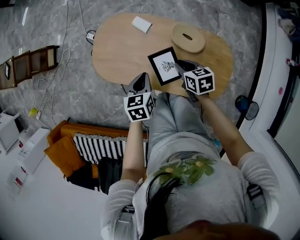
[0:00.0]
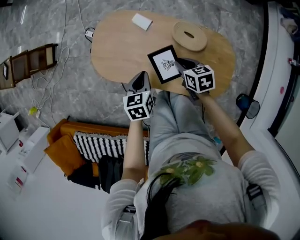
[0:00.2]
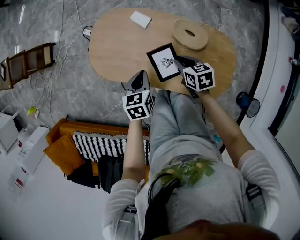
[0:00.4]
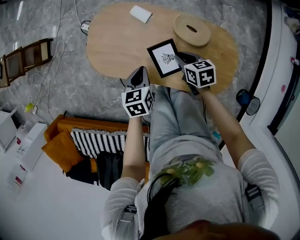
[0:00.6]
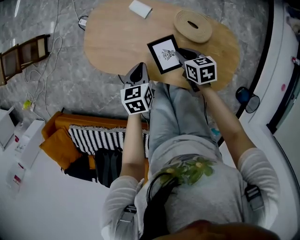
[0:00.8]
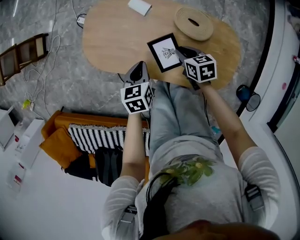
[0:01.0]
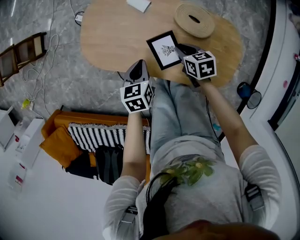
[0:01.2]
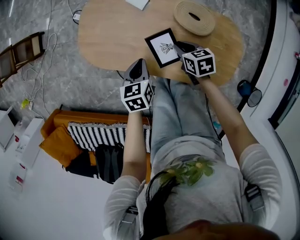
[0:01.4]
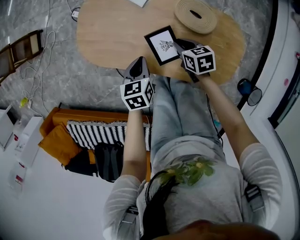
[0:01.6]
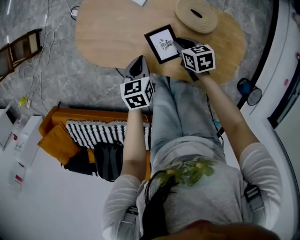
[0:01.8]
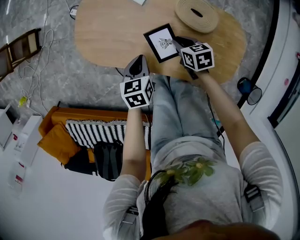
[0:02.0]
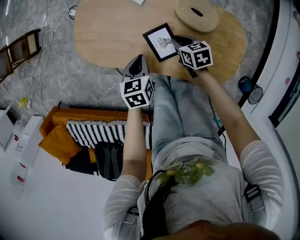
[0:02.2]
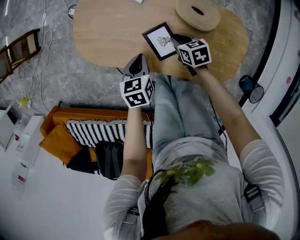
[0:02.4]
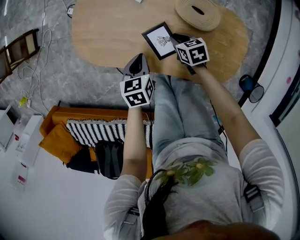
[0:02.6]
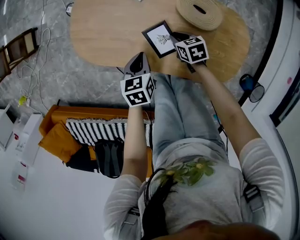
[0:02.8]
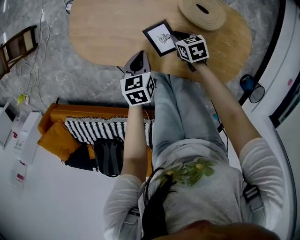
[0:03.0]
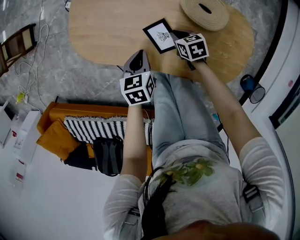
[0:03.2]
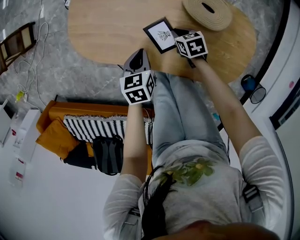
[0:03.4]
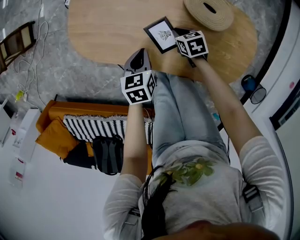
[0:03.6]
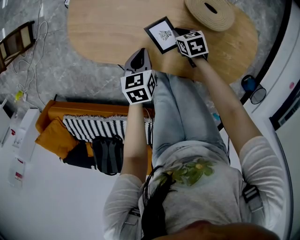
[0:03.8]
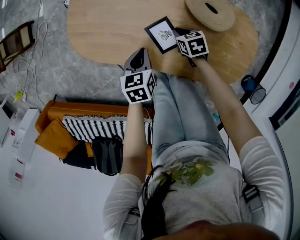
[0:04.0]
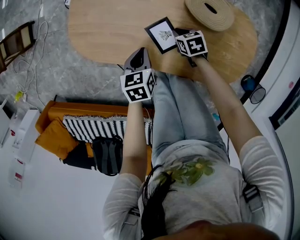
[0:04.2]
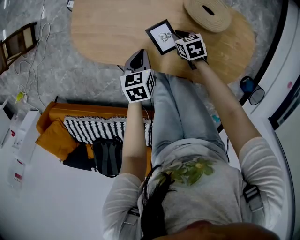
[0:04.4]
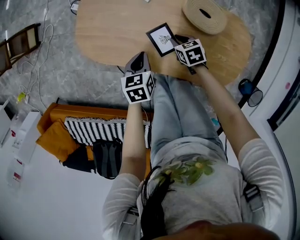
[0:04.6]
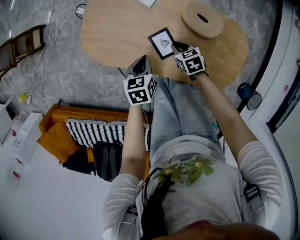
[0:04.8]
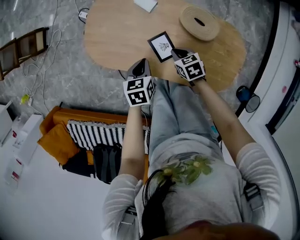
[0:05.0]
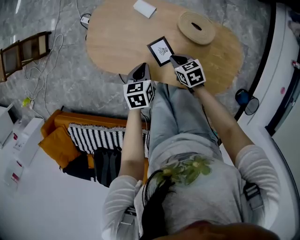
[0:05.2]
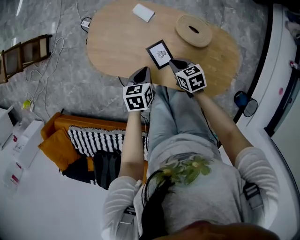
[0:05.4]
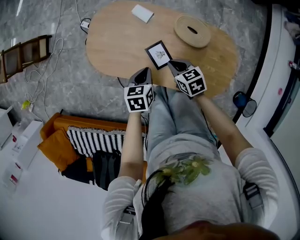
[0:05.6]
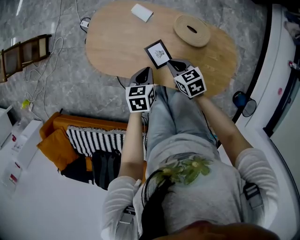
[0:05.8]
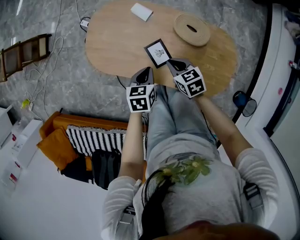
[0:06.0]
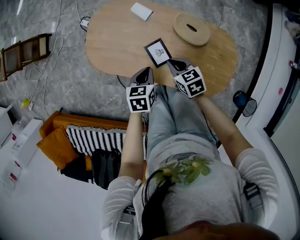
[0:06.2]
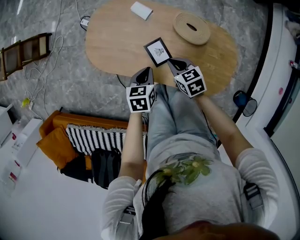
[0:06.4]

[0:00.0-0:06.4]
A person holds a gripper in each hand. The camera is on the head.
0:00.0 to 0:01.6: Both grippers move downward, some 10 cm.
0:01.6 to 0:03.2: The right gripper heads downward, covering roughly 10 cm; the left gripper travels downward by about 5 cm.
0:03.2 to 0:04.8: The right gripper is displaced upward by roughly 5 cm.
0:04.8 to 0:06.4: The right gripper shifts about 10 cm upward, while the left gripper moves about 5 cm.

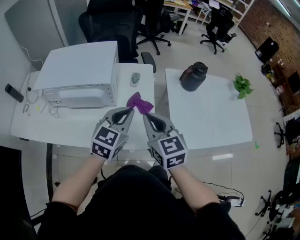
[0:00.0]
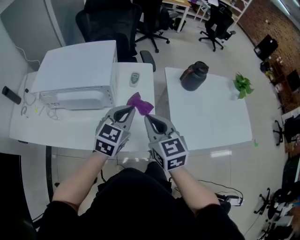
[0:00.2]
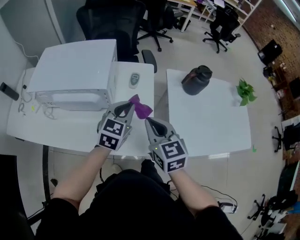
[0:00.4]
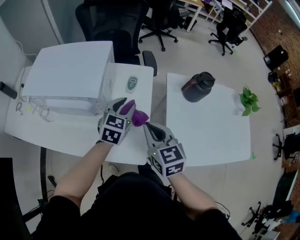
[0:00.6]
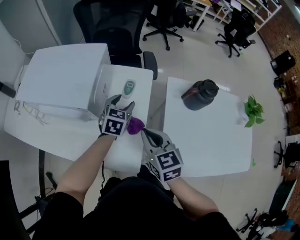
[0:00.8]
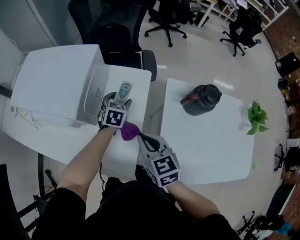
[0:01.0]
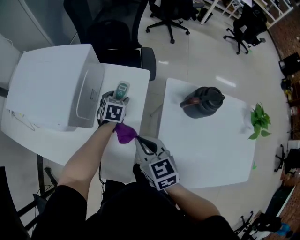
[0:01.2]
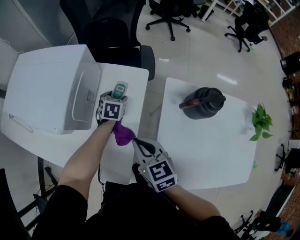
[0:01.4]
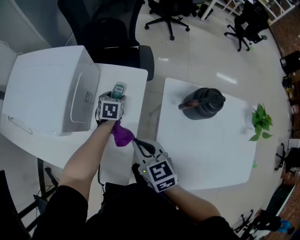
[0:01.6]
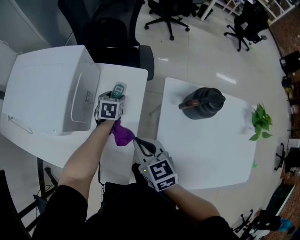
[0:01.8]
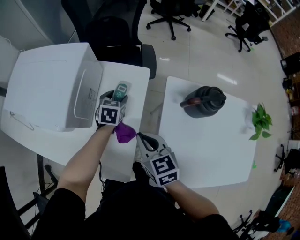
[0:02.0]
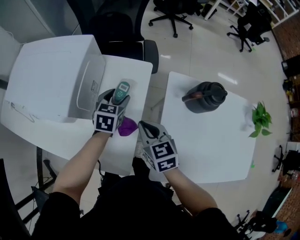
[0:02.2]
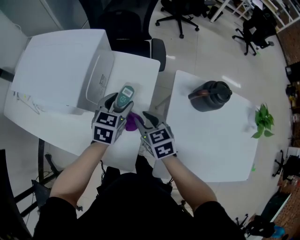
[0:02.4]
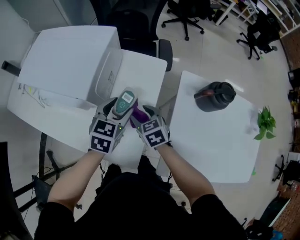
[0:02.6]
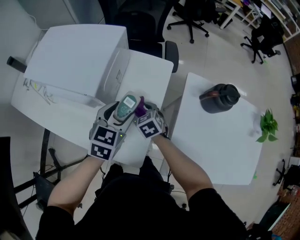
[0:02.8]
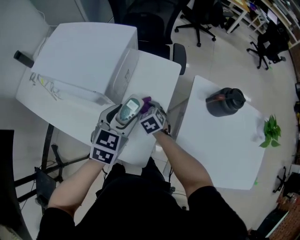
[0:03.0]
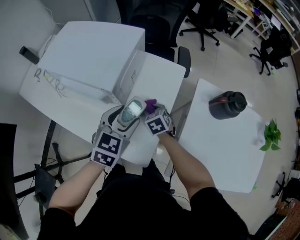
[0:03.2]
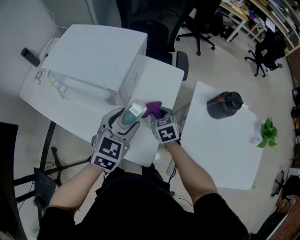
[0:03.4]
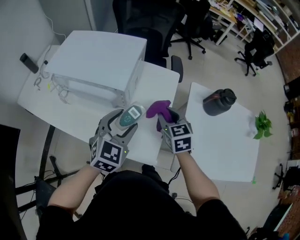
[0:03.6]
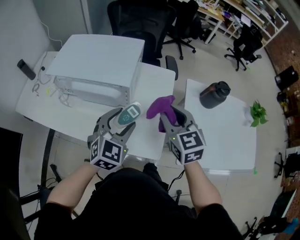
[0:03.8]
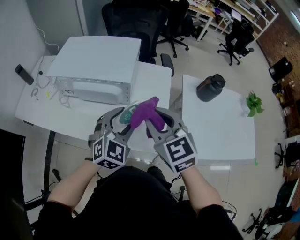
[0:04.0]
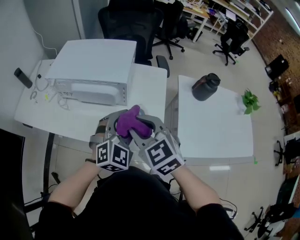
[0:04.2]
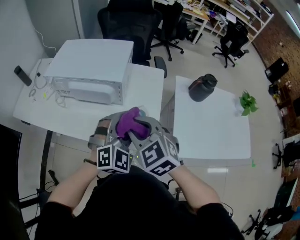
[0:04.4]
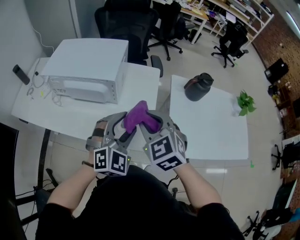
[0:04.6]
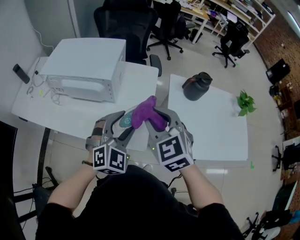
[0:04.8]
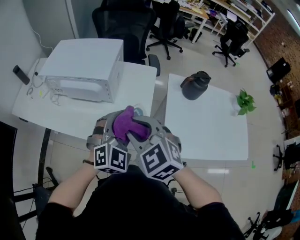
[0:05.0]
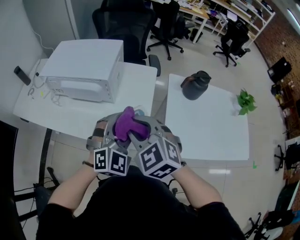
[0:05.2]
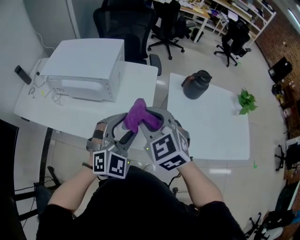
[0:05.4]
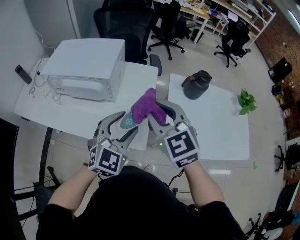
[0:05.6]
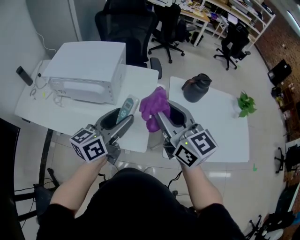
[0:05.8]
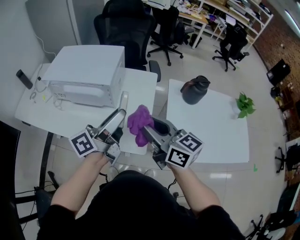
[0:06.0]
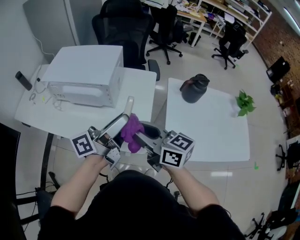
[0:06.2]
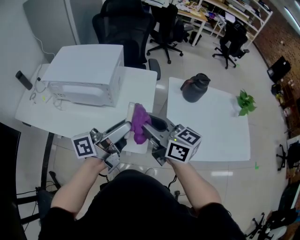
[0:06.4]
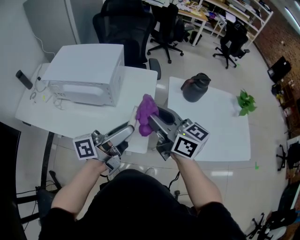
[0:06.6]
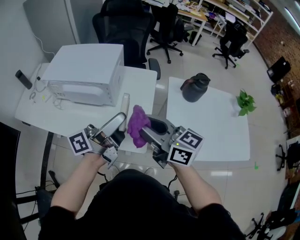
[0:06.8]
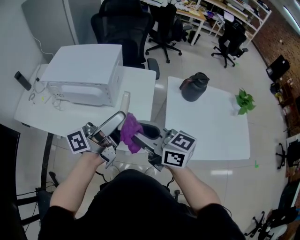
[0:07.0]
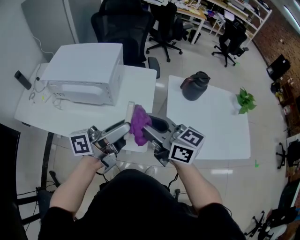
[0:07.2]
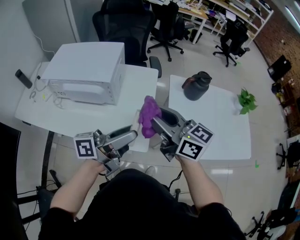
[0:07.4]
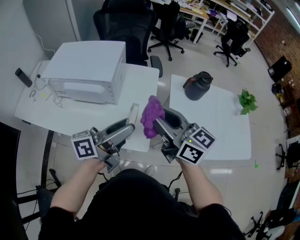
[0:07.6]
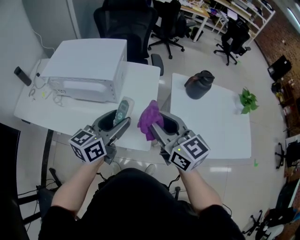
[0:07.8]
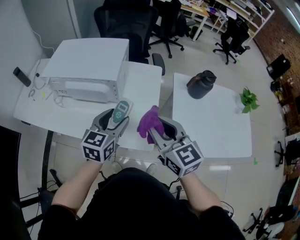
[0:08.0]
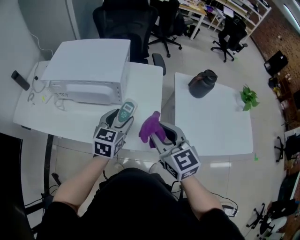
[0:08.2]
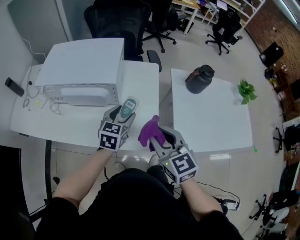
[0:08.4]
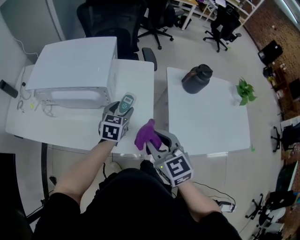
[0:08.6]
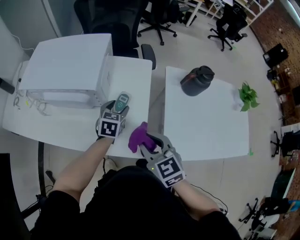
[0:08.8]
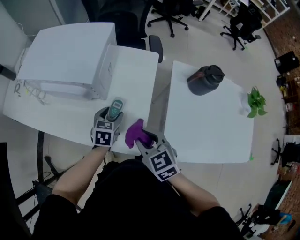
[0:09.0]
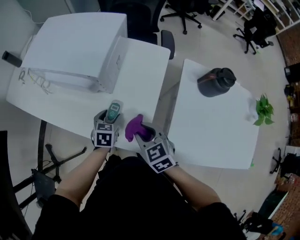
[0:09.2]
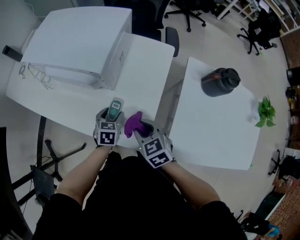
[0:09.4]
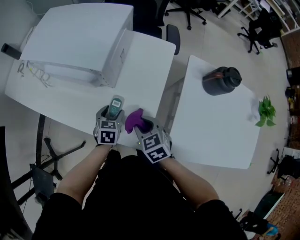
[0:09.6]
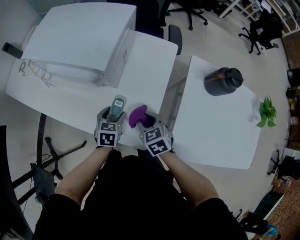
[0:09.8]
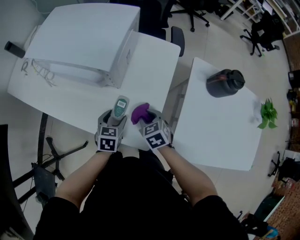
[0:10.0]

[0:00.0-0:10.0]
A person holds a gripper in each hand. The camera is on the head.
0:00.0 to 0:01.4: The right gripper ends up roughly 20 cm from where it was, and turns by some 30 degrees, while the left gripper ends up about 40 cm from where it was, tilts its fingers some 30 degrees downward, and opens up.
0:01.4 to 0:02.8: The right gripper goes some 15 cm downward, to the left and forward, swivels some 20 degrees, and opens up. Meanwhile the left gripper heads backward, upward and to the left, covering roughly 25 cm.
0:02.8 to 0:04.2: The right gripper travels upward, backward and to the left by approximately 40 cm, changes its angle by about 30 degrees, and closes, while the left gripper heads backward, upward and to the left, covering roughly 20 cm, and rotates some 40 degrees.
0:04.2 to 0:05.8: The right gripper goes left and right, roughly 20 cm each way, reversing 2 times, and changes its angle by approximately 40 degrees, while the left gripper travels upward by some 5 cm, and twists some 70 degrees counterclockwise, seen from behind.
0:05.8 to 0:07.2: The left gripper swivels some 40 degrees. The right gripper swivels about 20 degrees.
0:07.2 to 0:08.6: The left gripper goes roughly 25 cm downward and forward, and angles its fingers downward, by some 50 degrees; the right gripper is displaced downward by roughly 10 cm, and turns by roughly 40 degrees.
0:08.6 to 0:10.0: The right gripper shifts approximately 25 cm downward, and turns by some 30 degrees, while the left gripper travels downward, backward and to the left by some 15 cm, and changes its angle by about 20 degrees.

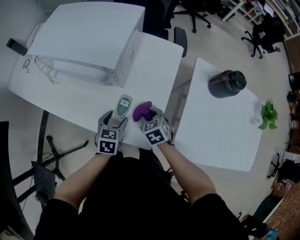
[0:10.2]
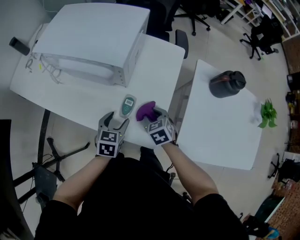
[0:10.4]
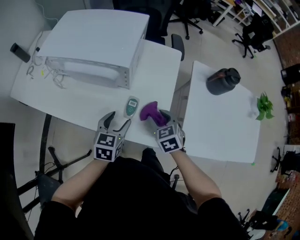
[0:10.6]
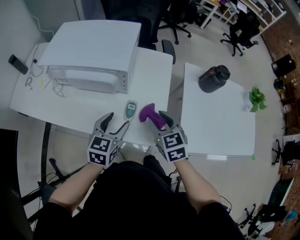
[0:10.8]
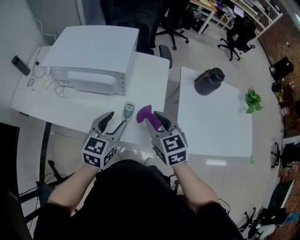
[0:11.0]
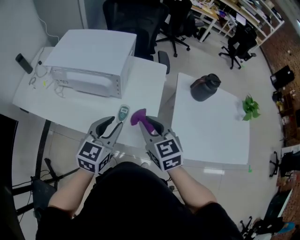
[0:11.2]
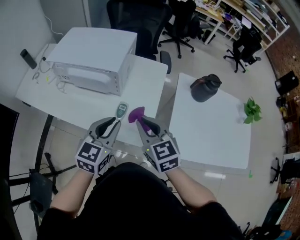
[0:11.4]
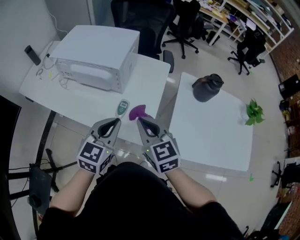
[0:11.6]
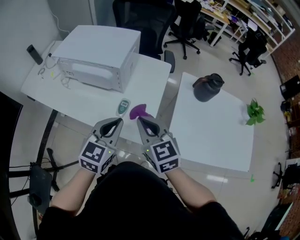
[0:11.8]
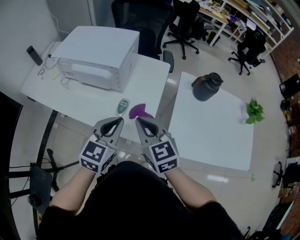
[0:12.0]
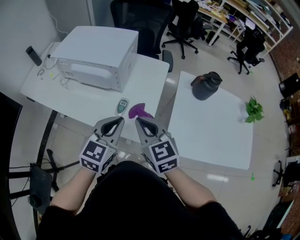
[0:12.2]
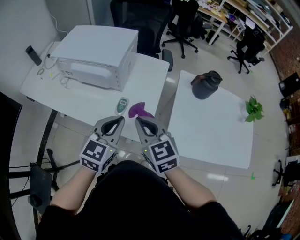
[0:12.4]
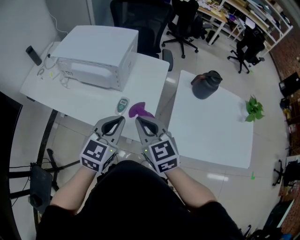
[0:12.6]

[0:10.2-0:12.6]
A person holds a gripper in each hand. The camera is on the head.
0:10.2 to 0:11.4: The grippers both shift upward by approximately 25 cm. The left gripper rotates some 30 degrees, and closes. Meanwhile the right gripper tilts its fingers approximately 30 degrees upward.
0:11.4 to 0:12.6: The grippers move only a little.

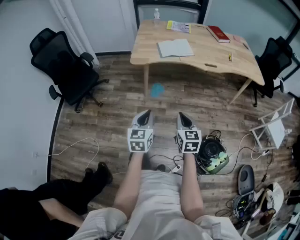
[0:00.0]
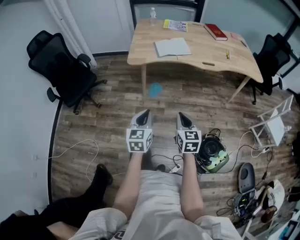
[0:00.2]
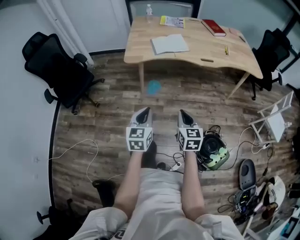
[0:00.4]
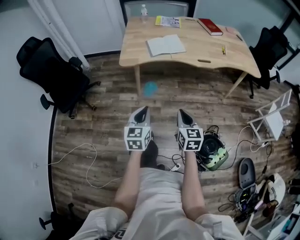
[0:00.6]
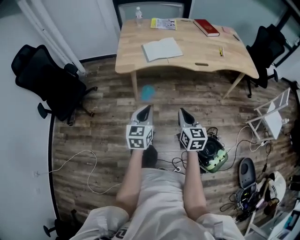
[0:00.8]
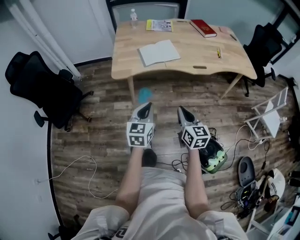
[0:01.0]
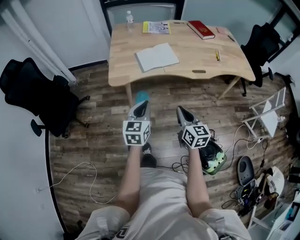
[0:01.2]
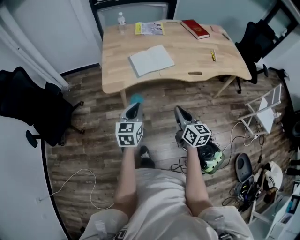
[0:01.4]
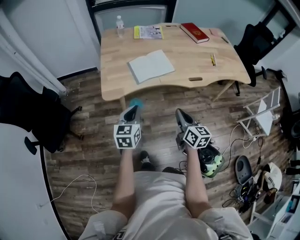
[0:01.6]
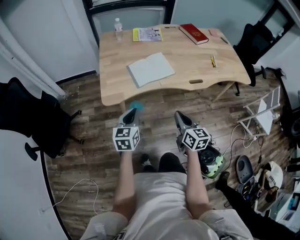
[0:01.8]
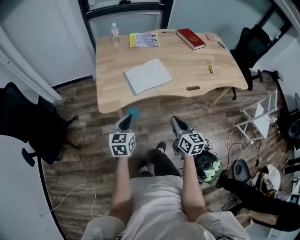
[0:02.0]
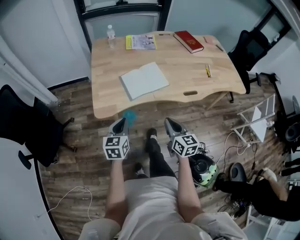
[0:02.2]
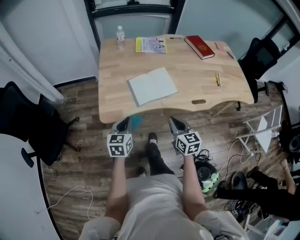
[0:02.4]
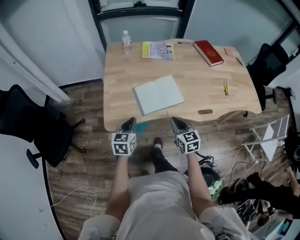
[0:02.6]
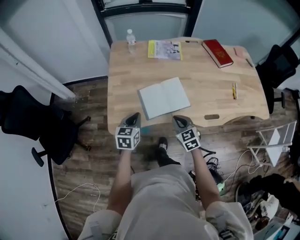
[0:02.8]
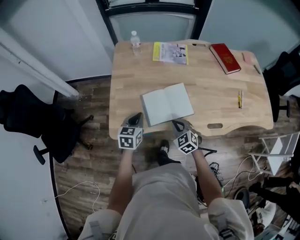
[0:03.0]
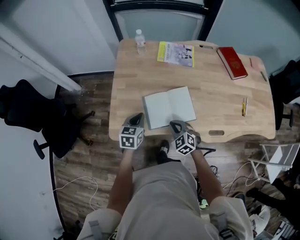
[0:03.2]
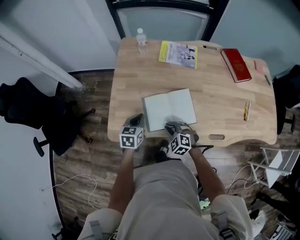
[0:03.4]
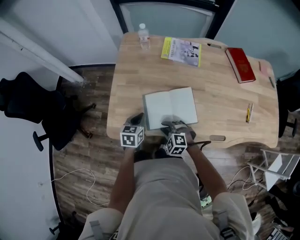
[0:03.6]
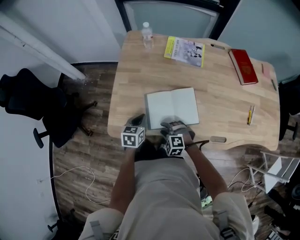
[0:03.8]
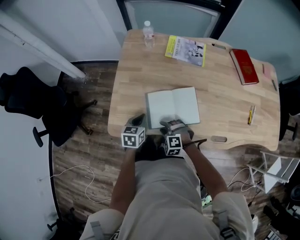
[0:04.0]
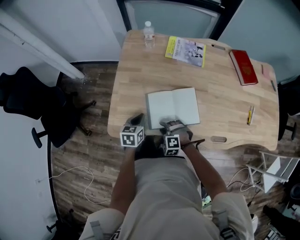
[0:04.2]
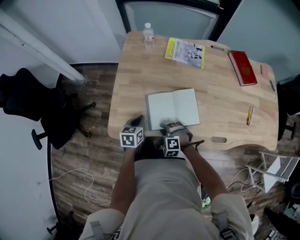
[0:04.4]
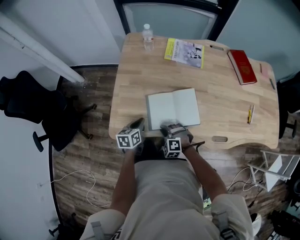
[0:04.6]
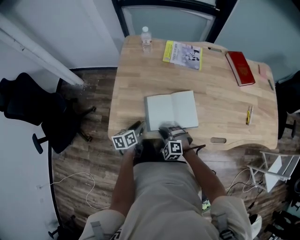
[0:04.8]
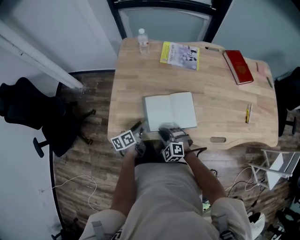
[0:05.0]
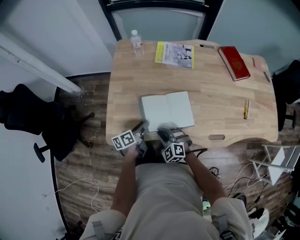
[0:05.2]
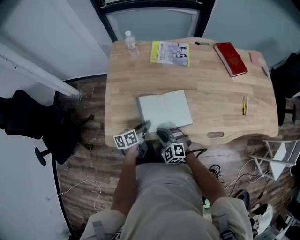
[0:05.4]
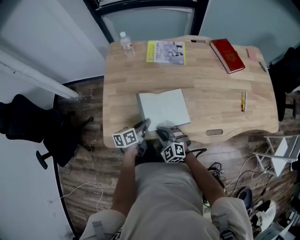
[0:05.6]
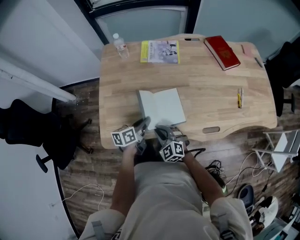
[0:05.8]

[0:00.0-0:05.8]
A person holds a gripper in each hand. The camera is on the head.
0:00.0 to 0:01.4: The two grippers go approximately 30 cm forward. The right gripper rotates some 20 degrees.
0:01.4 to 0:02.8: The grippers both shift forward by some 30 cm. The right gripper swivels roughly 40 degrees.
0:02.8 to 0:04.4: The right gripper is displaced downward and to the left by roughly 15 cm, twists some 60 degrees counterclockwise, seen from behind, and opens its fingers. Meanwhile the left gripper heads downward and forward, covering about 15 cm.
0:04.4 to 0:05.8: The right gripper goes roughly 10 cm upward, turns by approximately 40 degrees, and closes up; the left gripper is displaced to the right by about 10 cm, turns by about 30 degrees, and opens, then closes again.
